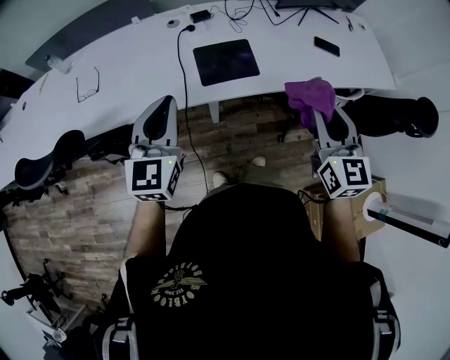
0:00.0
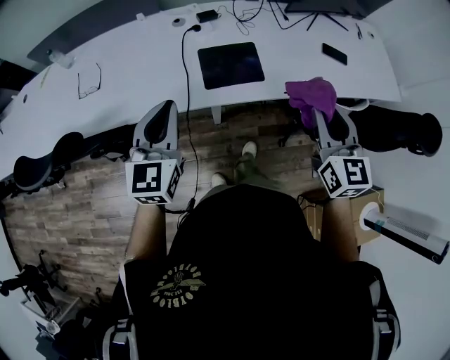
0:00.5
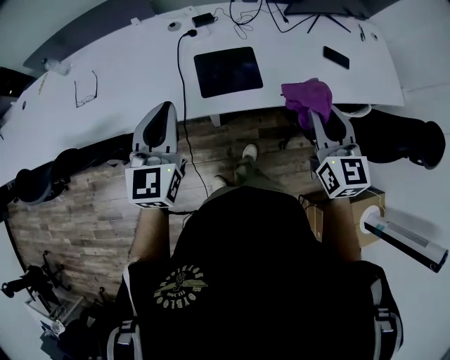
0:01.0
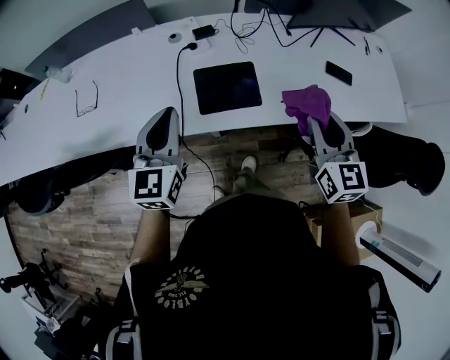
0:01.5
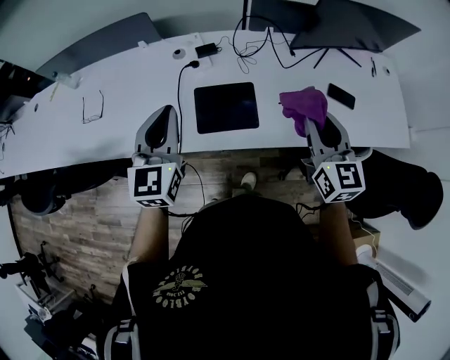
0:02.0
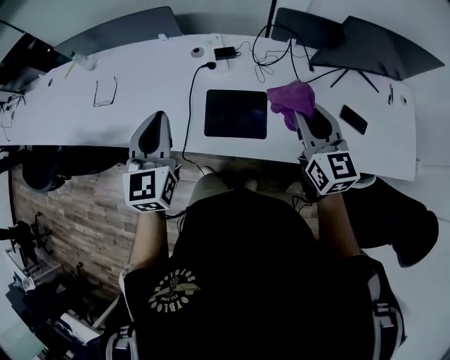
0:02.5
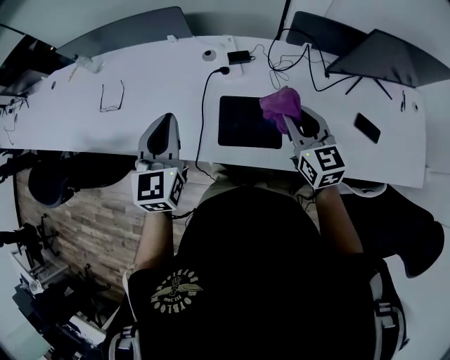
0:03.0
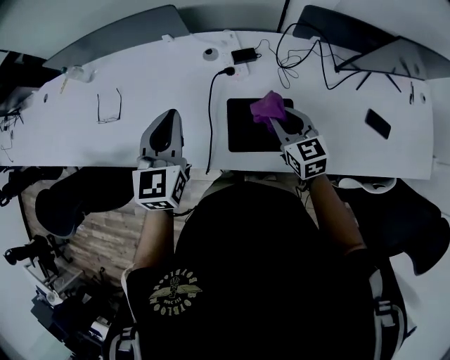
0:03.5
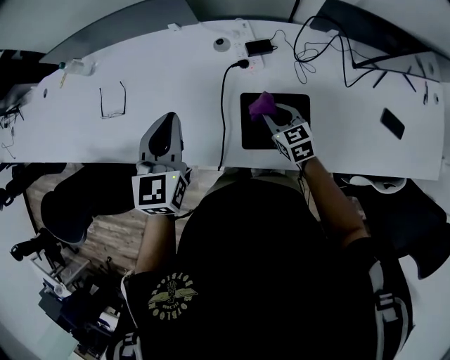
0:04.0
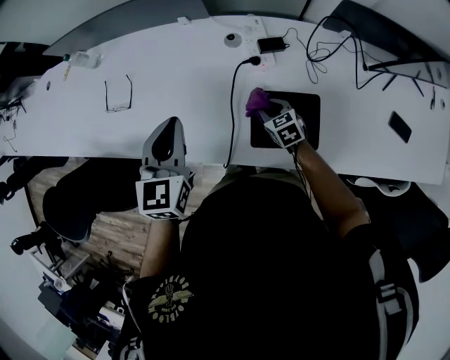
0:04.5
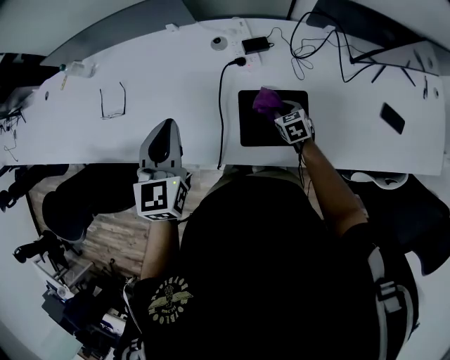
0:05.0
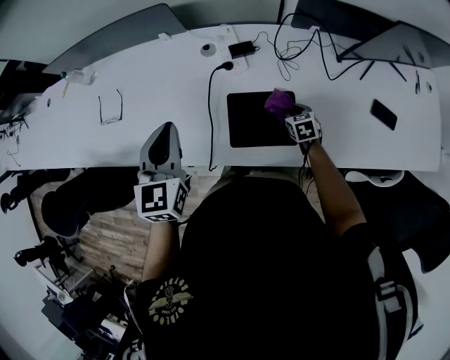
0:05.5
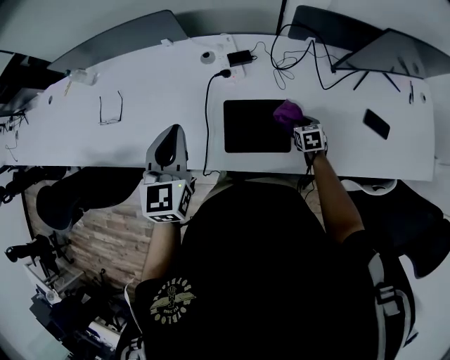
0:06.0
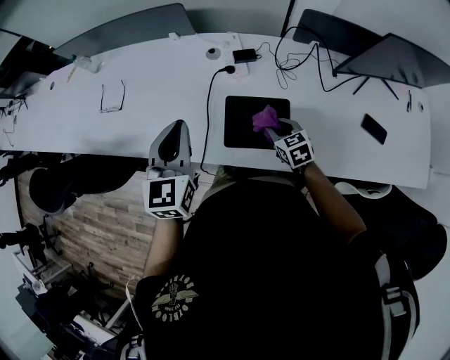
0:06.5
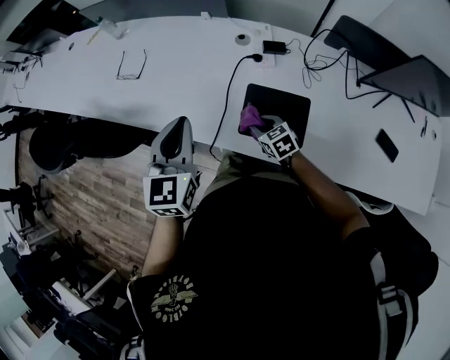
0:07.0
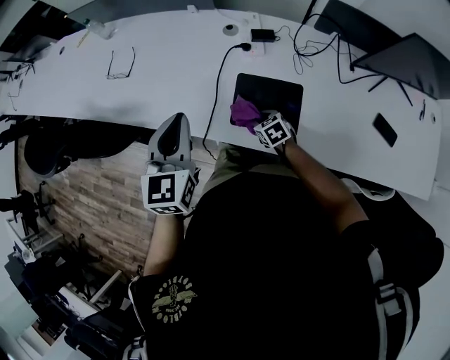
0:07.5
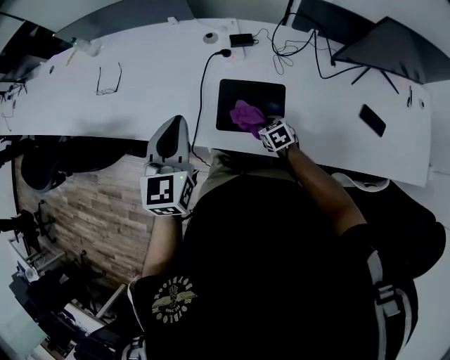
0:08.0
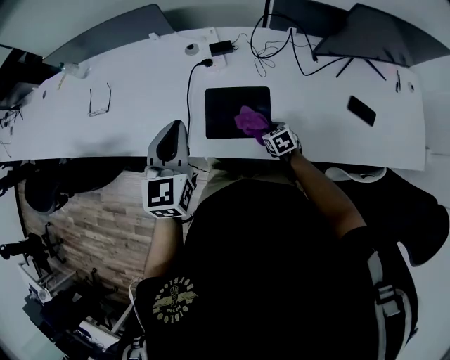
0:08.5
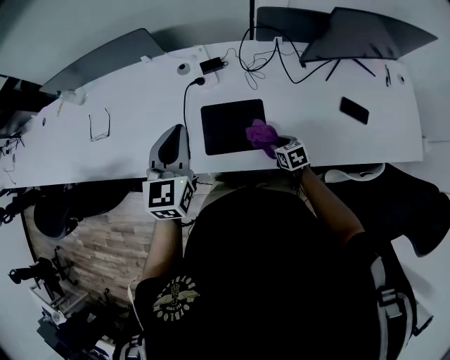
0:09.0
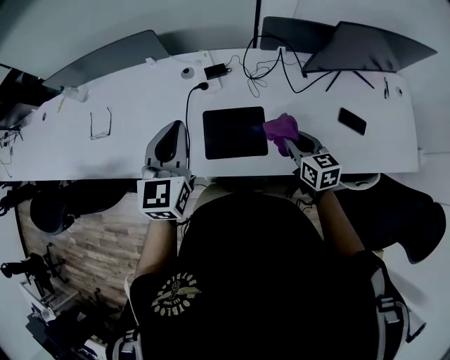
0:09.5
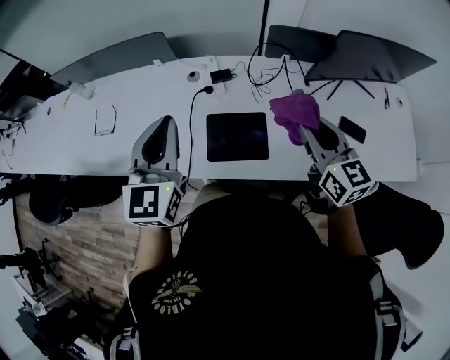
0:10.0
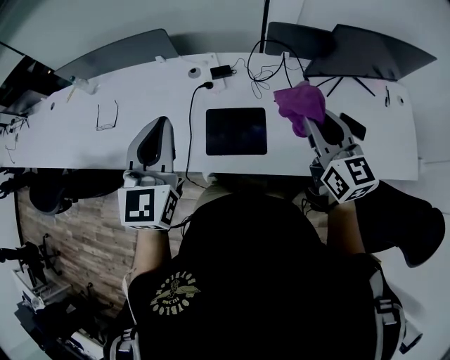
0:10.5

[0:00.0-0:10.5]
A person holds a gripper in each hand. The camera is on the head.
0:00.0 to 0:02.0: Both grippers move forward, about 20 cm.
0:02.0 to 0:04.0: The left gripper moves forward, to the left and downward, roughly 20 cm. Meanwhile the right gripper travels downward, to the left and forward by about 40 cm, and swivels some 40 degrees.
0:04.0 to 0:06.5: The right gripper moves left and right over roughly 25 cm, changing direction 2 times. The left gripper moves backward, some 10 cm.
0:06.5 to 0:08.5: The left gripper ends up roughly 5 cm from where it was. The right gripper goes roughly 10 cm downward and backward, and reaches roughly 10 cm to the left, then returns.
0:08.5 to 0:10.5: The left gripper shifts approximately 15 cm upward. Meanwhile the right gripper shifts about 40 cm upward, and points its fingers some 50 degrees further upward.

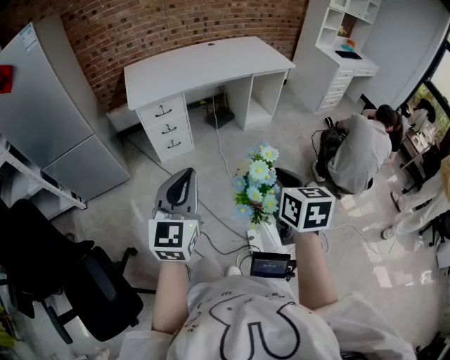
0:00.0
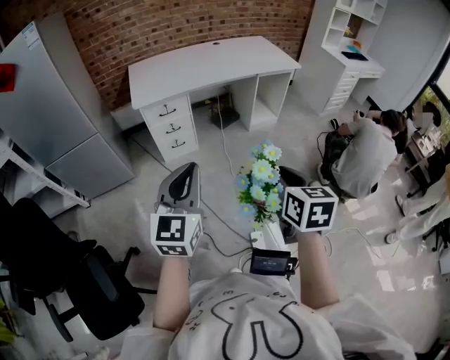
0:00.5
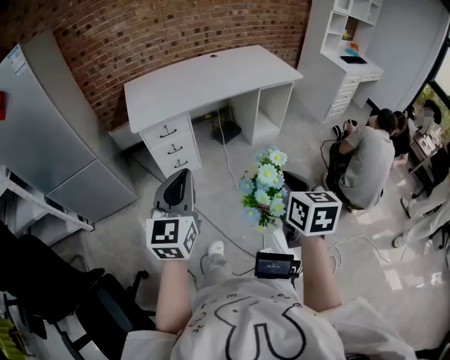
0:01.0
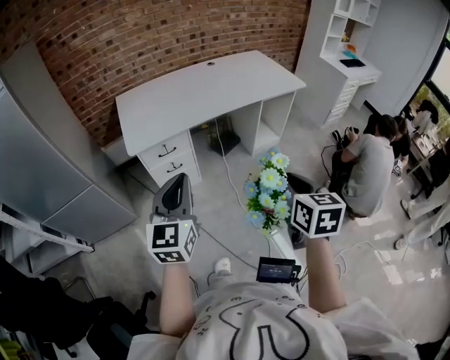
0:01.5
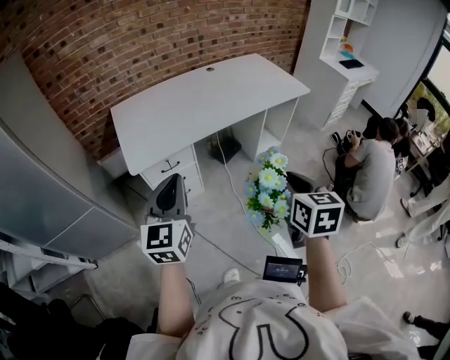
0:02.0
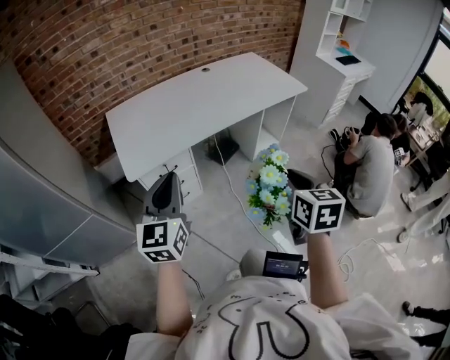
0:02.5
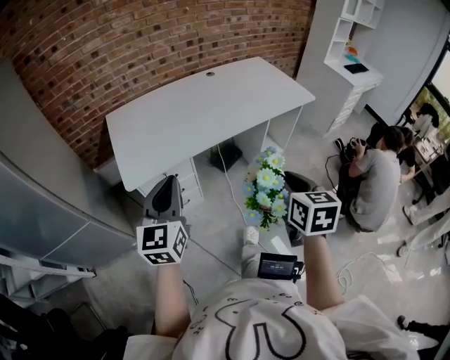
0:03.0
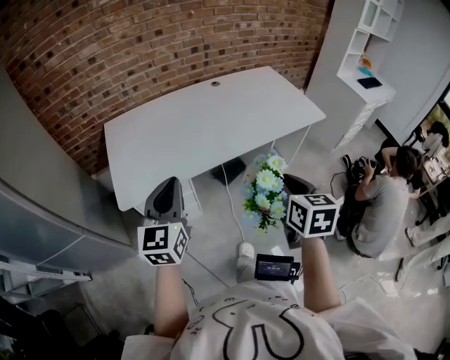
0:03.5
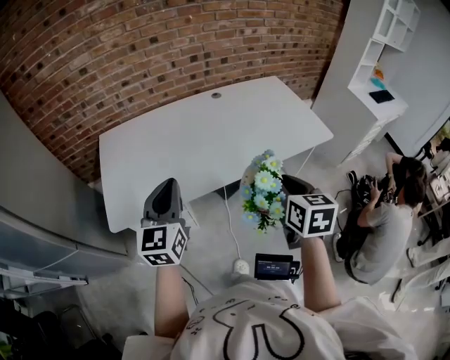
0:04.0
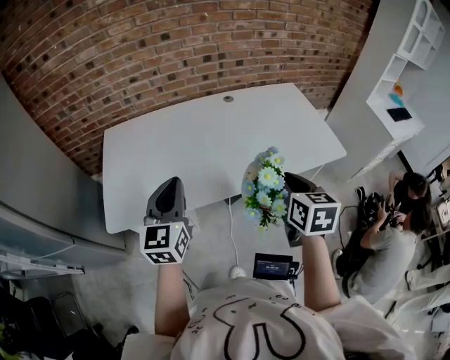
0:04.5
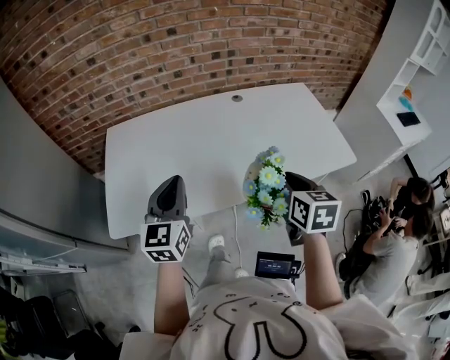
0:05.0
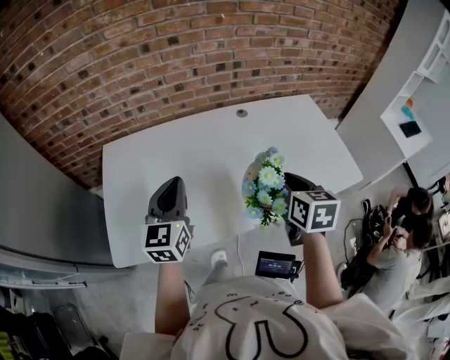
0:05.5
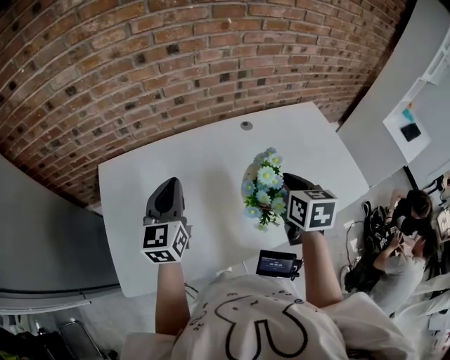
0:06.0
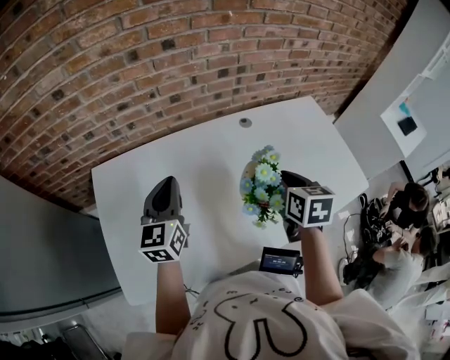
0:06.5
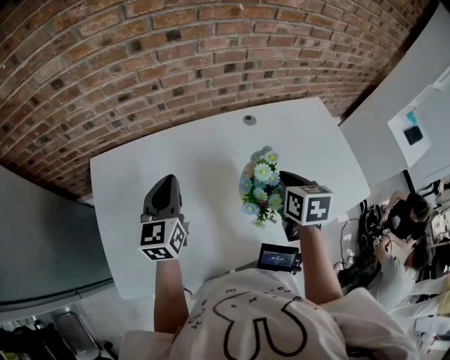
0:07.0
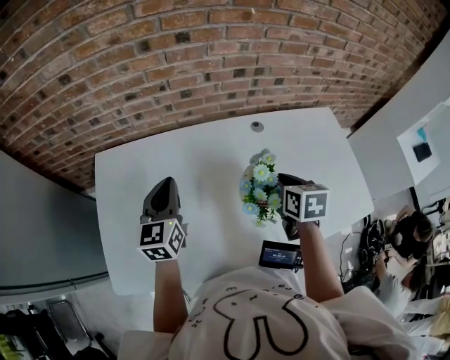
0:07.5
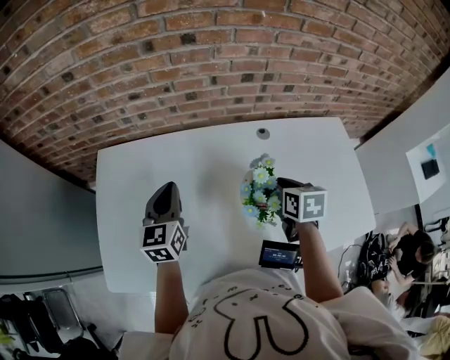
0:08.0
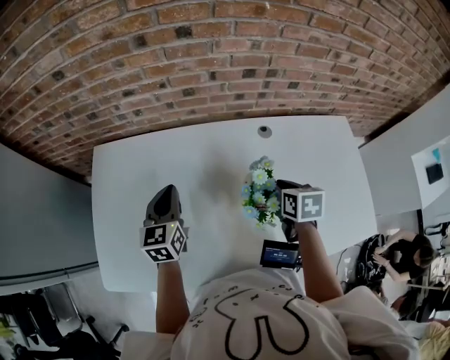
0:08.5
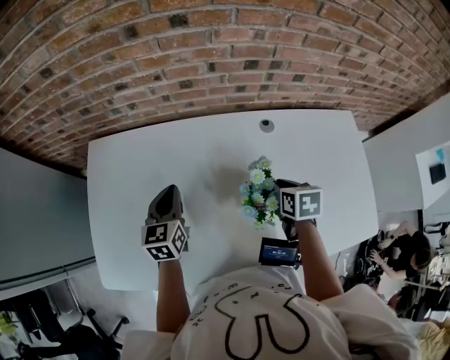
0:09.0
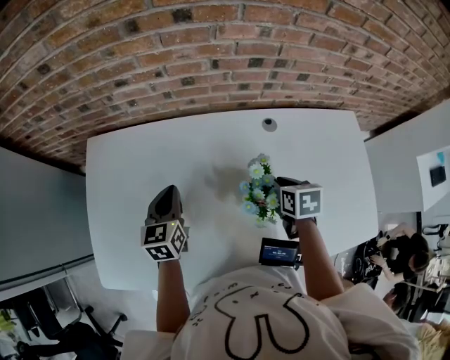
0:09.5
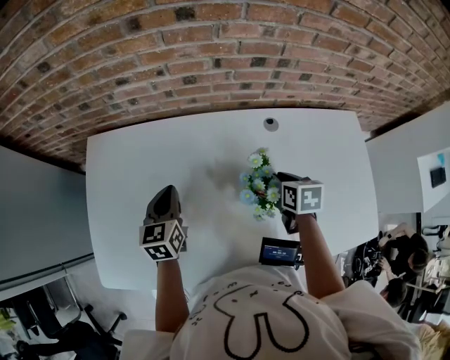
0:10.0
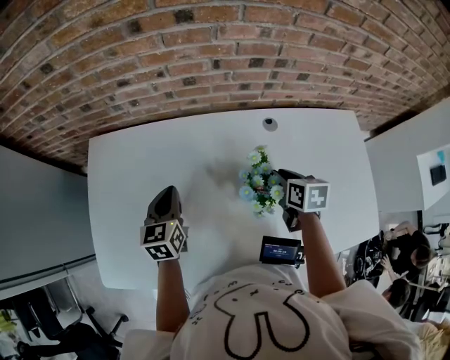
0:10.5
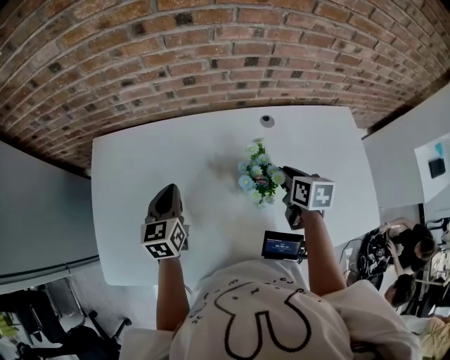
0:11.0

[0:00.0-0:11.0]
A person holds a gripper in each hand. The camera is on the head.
0:00.0 to 0:02.0: The left gripper goes roughly 40 cm forward and to the left. Meanwhile the right gripper moves forward, about 35 cm.
0:02.0 to 0:03.5: The grippers both shift forward by some 20 cm.
0:03.5 to 0:05.5: Both grippers move forward, about 35 cm.
0:05.5 to 0:07.5: Both grippers move forward, about 15 cm.
0:07.5 to 0:09.0: The right gripper is displaced downward and forward by some 10 cm, while the left gripper heads downward, covering some 10 cm.
0:09.0 to 0:11.0: There are only small adjustments of the grippers.

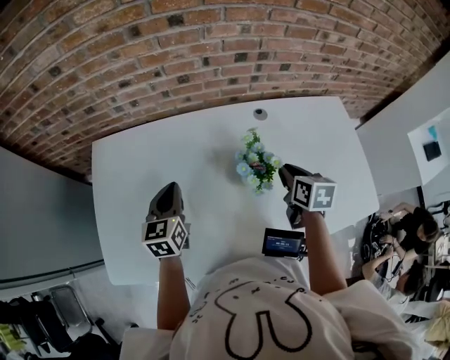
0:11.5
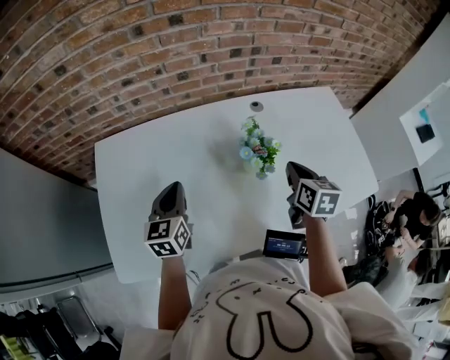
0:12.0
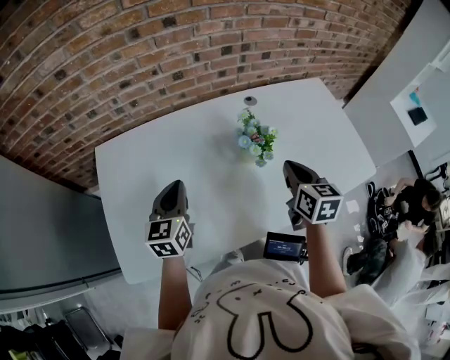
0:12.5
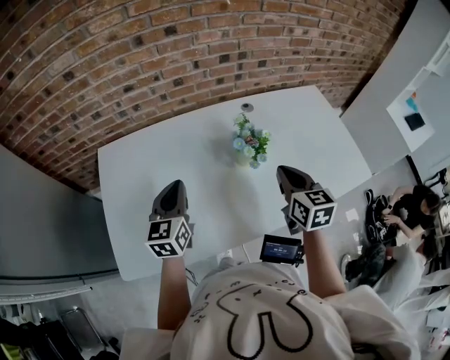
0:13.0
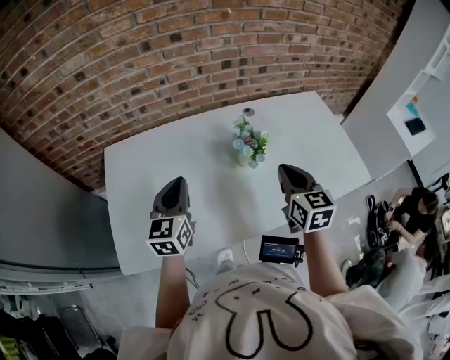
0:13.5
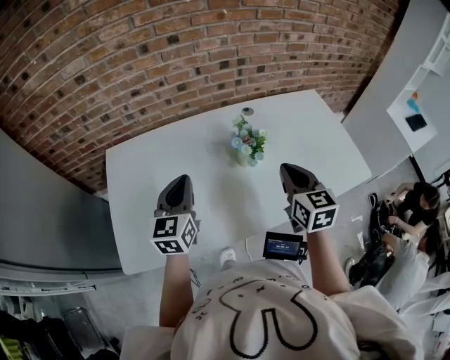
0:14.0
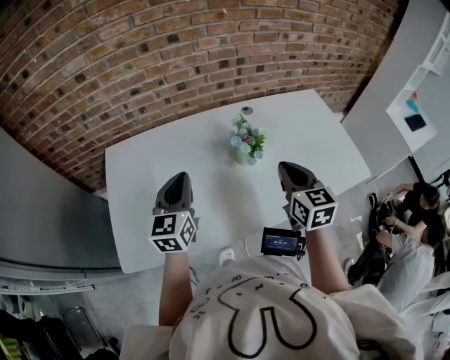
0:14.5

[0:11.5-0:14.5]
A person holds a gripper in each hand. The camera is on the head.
0:11.5 to 0:13.0: The left gripper heads backward and upward, covering approximately 10 cm; the right gripper is displaced backward and upward by roughly 15 cm, and changes its angle by approximately 20 degrees.
0:13.0 to 0:14.5: The left gripper shifts by approximately 5 cm.

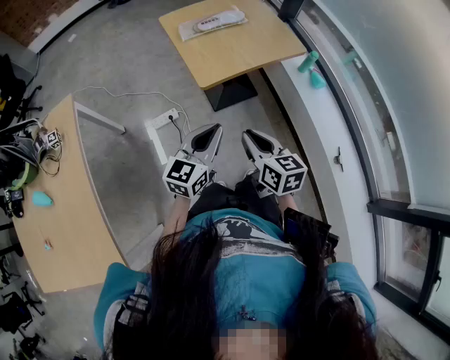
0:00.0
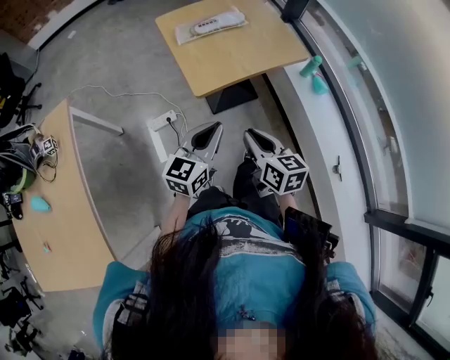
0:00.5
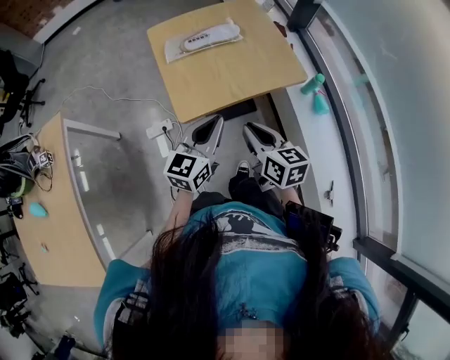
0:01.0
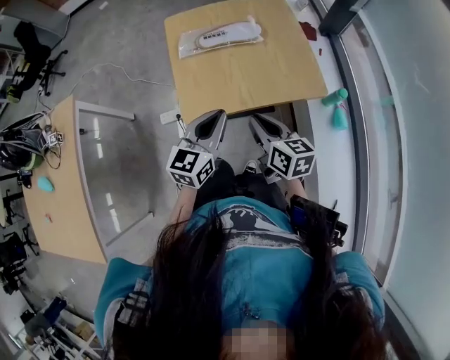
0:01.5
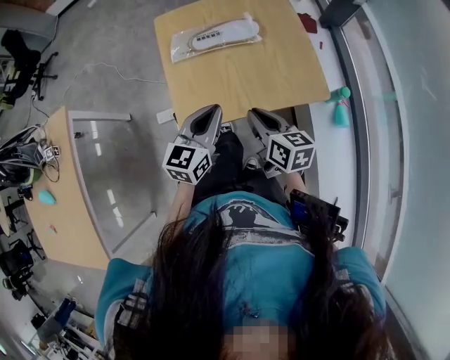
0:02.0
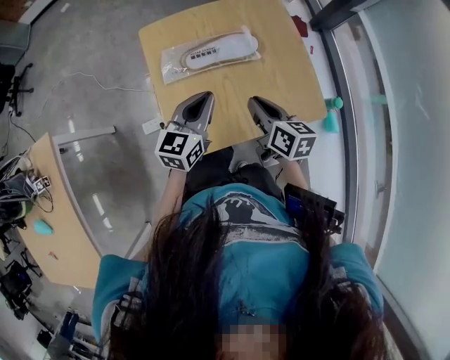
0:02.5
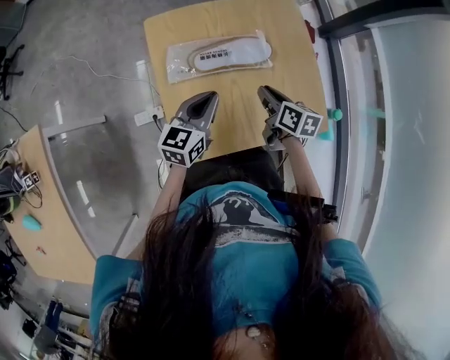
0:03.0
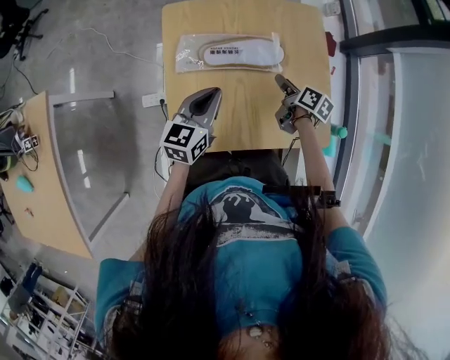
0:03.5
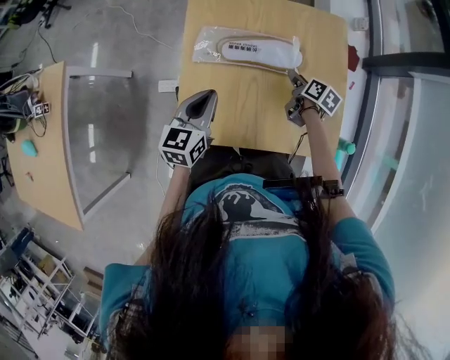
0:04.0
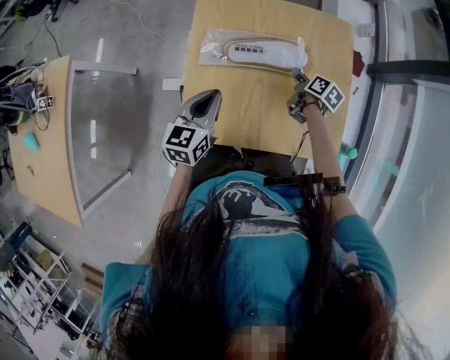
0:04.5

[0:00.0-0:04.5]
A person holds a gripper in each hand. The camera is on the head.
0:00.0 to 0:02.0: The two grippers go roughly 40 cm forward and to the right.
0:02.0 to 0:04.5: The left gripper shifts some 20 cm forward and to the left, and rotates approximately 20 degrees. The right gripper heads forward and downward, covering roughly 40 cm, turns by approximately 30 degrees, and opens up.
